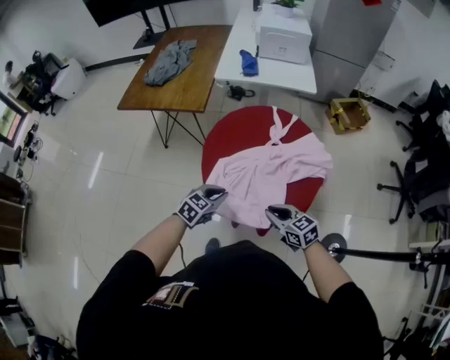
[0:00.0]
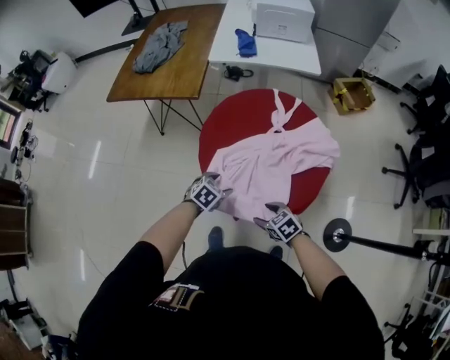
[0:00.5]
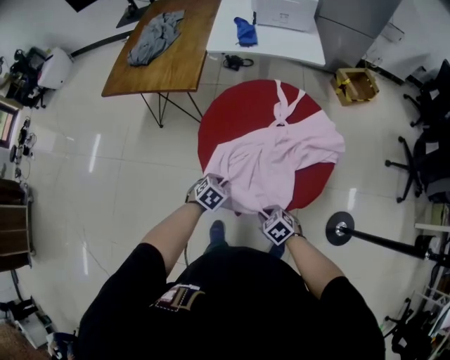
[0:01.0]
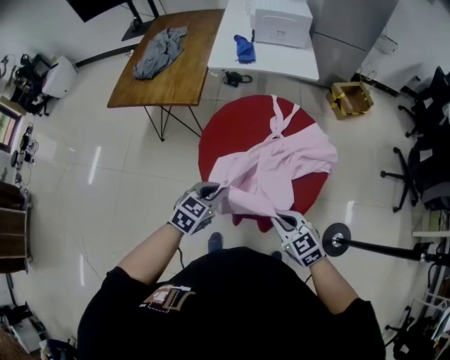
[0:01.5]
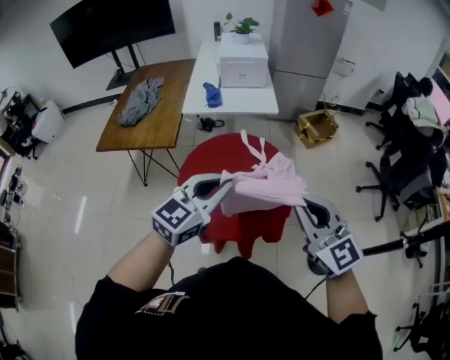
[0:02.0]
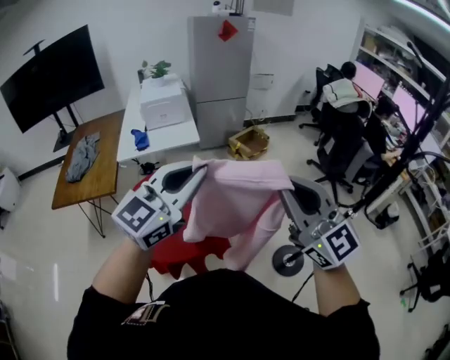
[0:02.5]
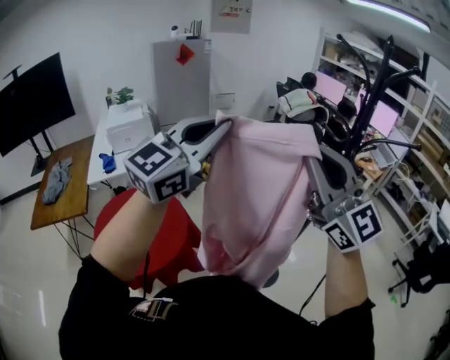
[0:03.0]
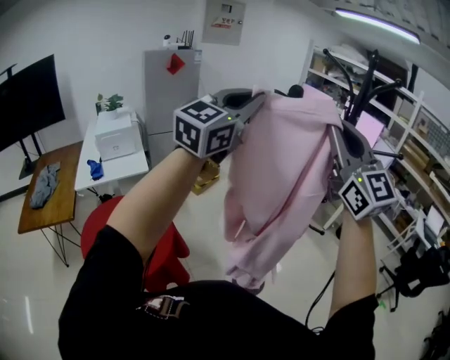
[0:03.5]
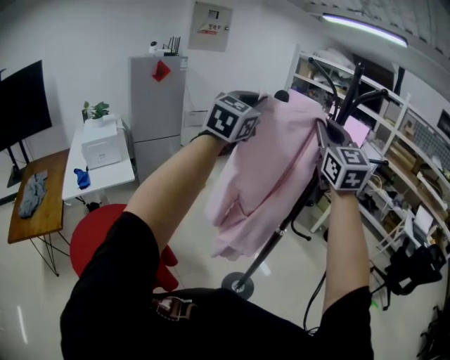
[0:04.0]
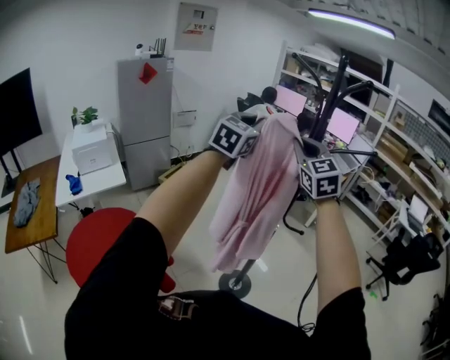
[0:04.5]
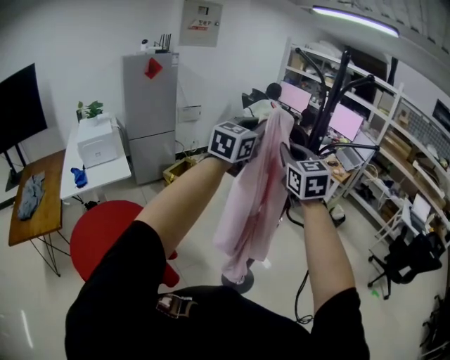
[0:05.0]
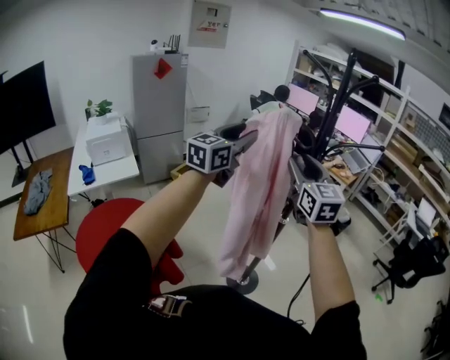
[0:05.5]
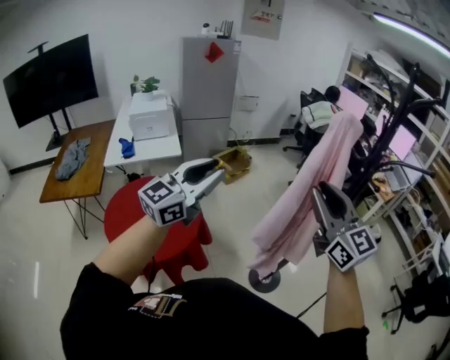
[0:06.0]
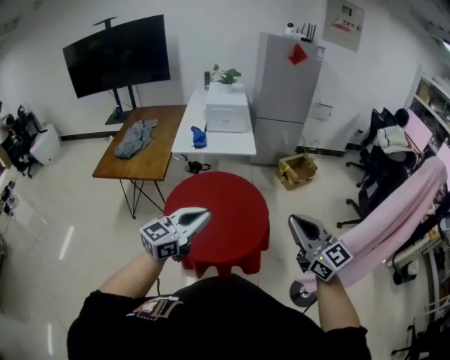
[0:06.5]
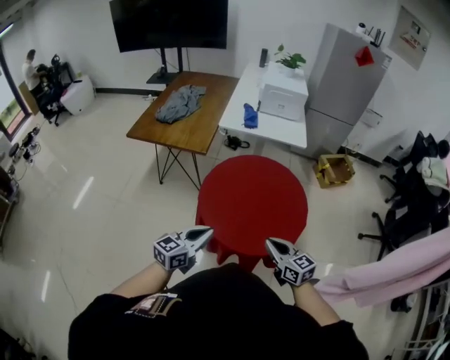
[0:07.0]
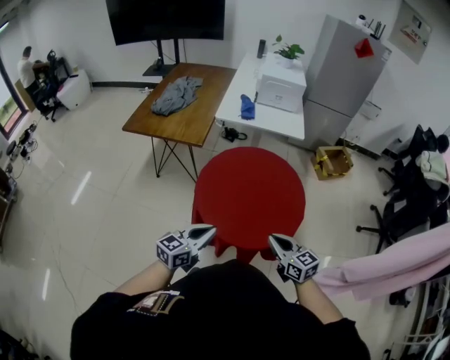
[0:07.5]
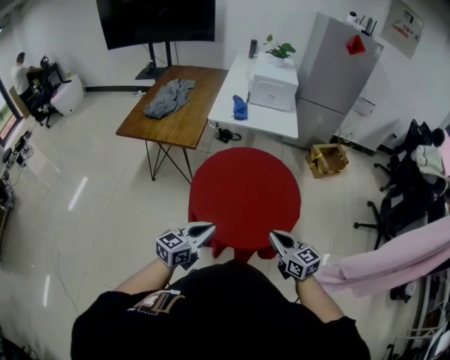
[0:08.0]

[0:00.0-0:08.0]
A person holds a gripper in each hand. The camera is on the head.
0:00.0 to 0:02.0: Both grippers travel together upward, some 30 cm. The left gripper rotates some 30 degrees, and opens, then closes again; the right gripper angles its fingers upward, by roughly 30 degrees, and opens and closes again.
0:02.0 to 0:04.0: Both grippers are carried approximately 60 cm. The right gripper changes its angle by approximately 60 degrees. Meanwhile the left gripper changes its angle by roughly 40 degrees.
0:04.0 to 0:06.0: The left gripper travels downward, backward and to the left by about 35 cm, and opens up, while the right gripper travels downward and backward by roughly 25 cm, and changes its angle by approximately 40 degrees.
0:06.0 to 0:08.0: The two grippers travel together, about 40 cm. The left gripper changes its angle by about 50 degrees, and closes its fingers. Meanwhile the right gripper turns by about 50 degrees, and closes.

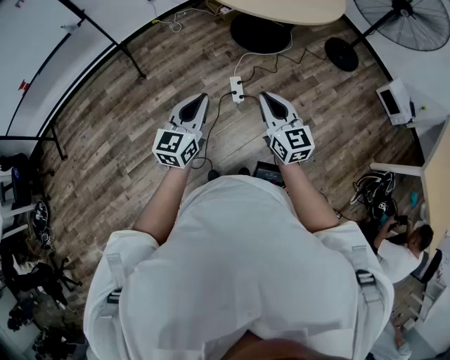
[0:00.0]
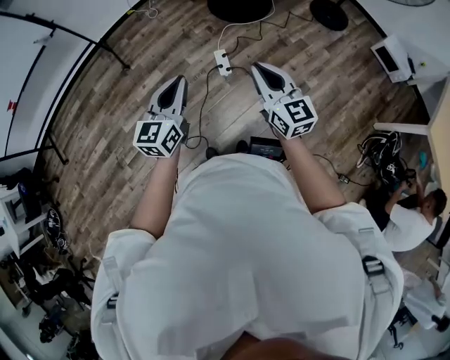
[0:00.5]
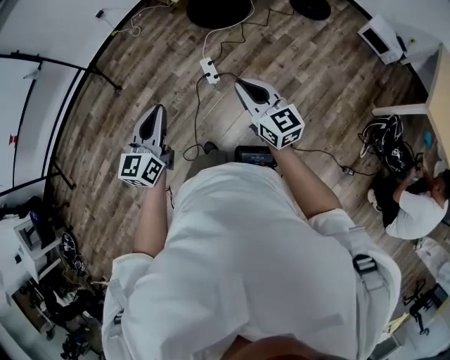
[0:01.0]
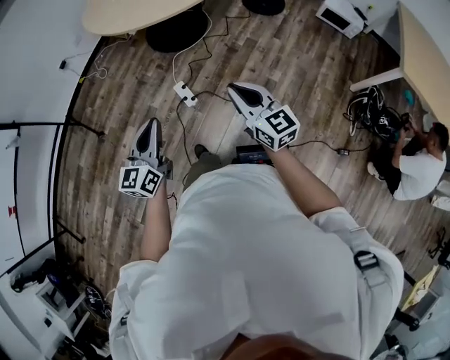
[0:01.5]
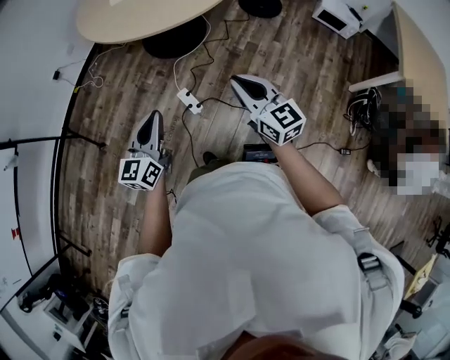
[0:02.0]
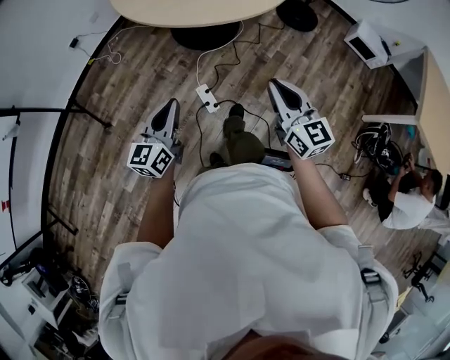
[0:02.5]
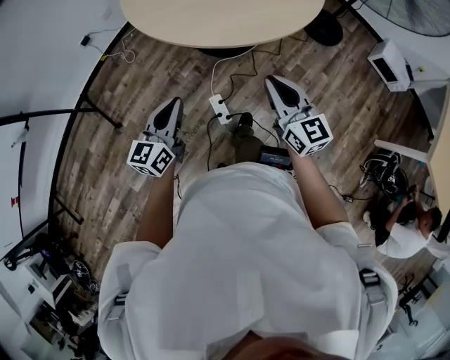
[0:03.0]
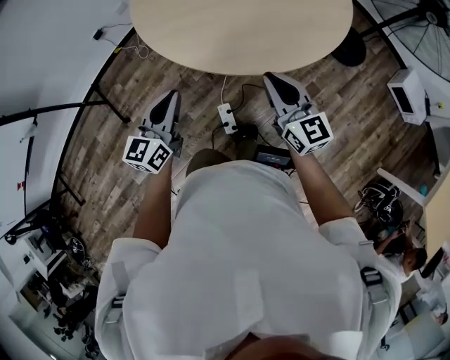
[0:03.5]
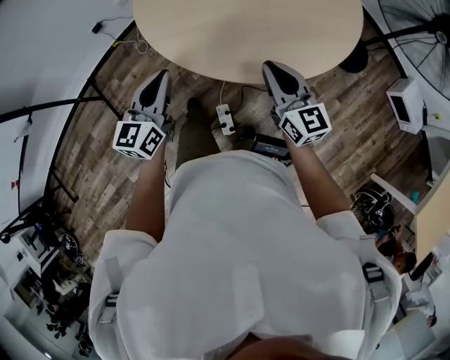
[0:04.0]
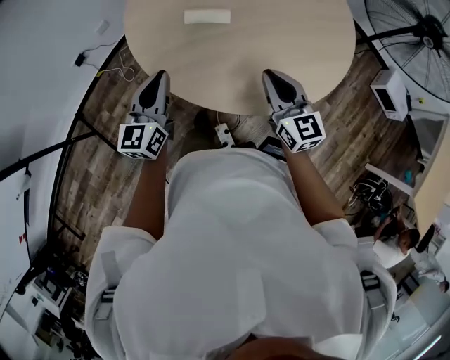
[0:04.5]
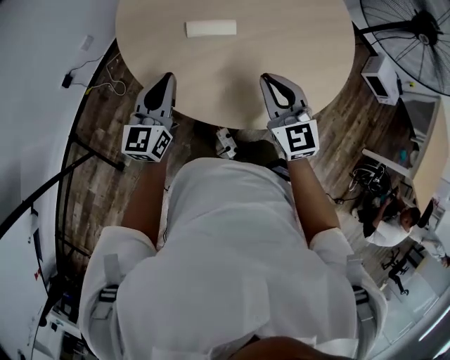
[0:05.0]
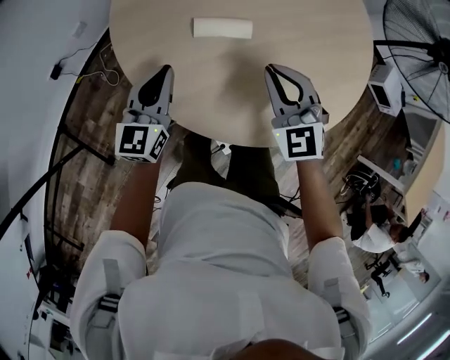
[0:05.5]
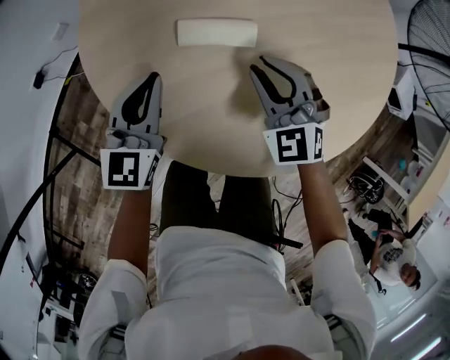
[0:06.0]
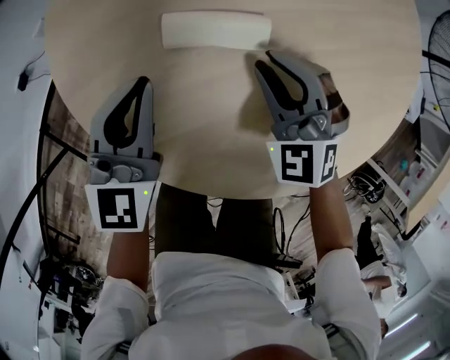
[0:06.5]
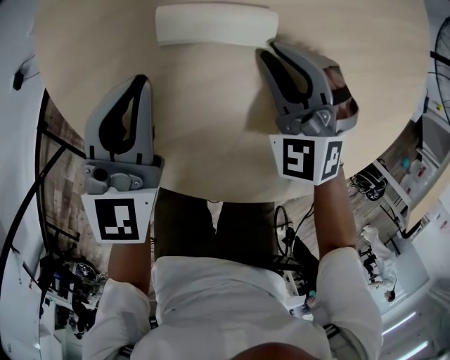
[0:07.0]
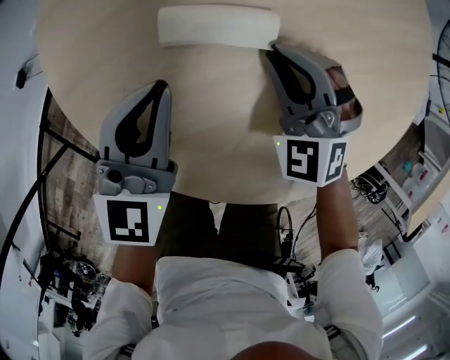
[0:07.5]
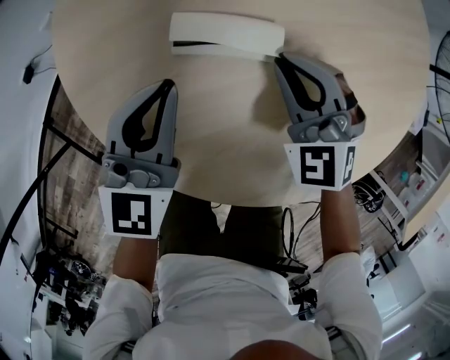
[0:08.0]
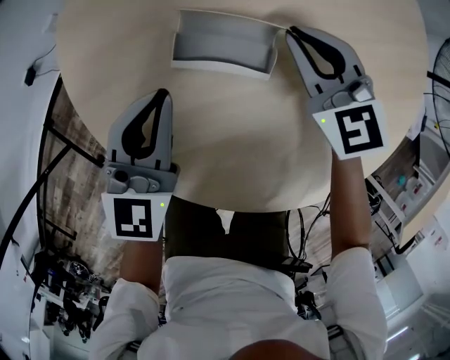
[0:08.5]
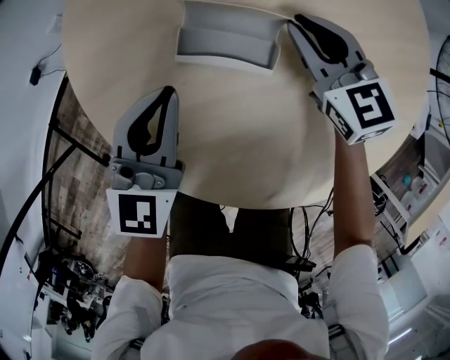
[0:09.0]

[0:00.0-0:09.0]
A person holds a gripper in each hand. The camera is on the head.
0:00.0 to 0:02.0: The right gripper is displaced forward and to the right by about 20 cm. The left gripper travels forward by some 20 cm.
0:02.0 to 0:04.5: Both grippers are carried forward, about 60 cm.
0:04.5 to 0:07.0: Both grippers move forward and downward, approximately 30 cm. The right gripper rolls counterclockwise, seen from behind, by about 50 degrees.
0:07.0 to 0:09.0: The right gripper is displaced forward by about 10 cm, and changes its angle by some 40 degrees.

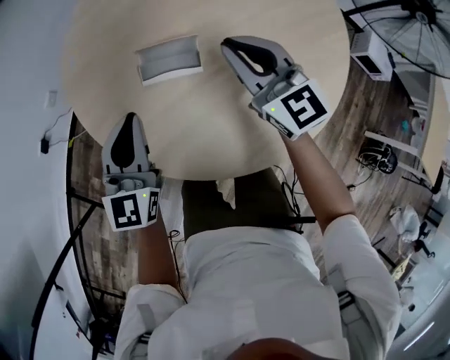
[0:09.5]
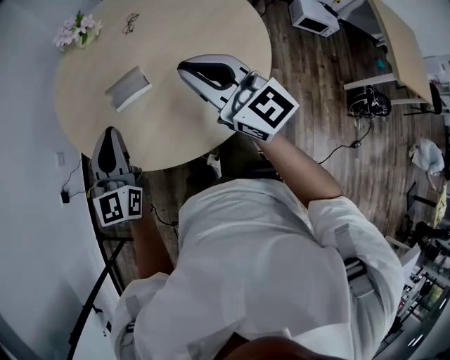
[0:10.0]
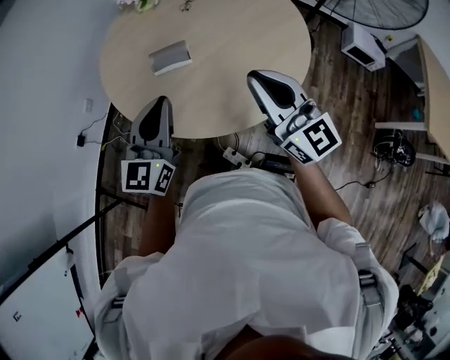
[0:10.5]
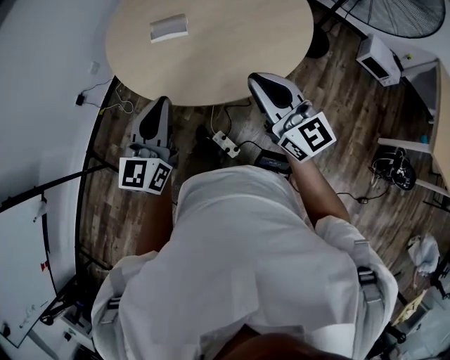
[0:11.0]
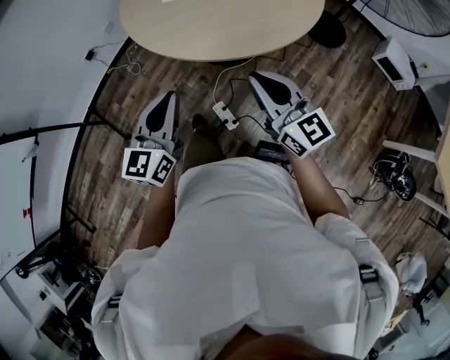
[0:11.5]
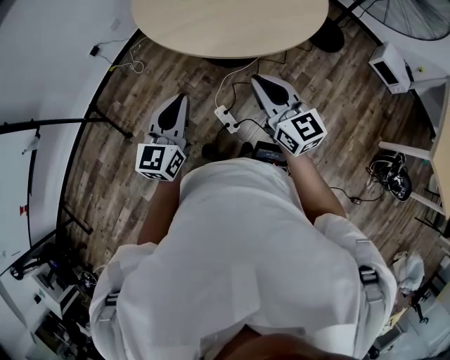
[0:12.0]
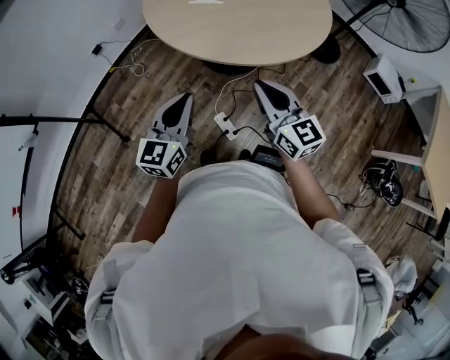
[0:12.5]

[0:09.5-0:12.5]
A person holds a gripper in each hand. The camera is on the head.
0:09.5 to 0:11.0: The grippers both shift backward, upward and to the right by about 40 cm.
0:11.0 to 0:12.5: The two grippers go some 20 cm backward and to the left.

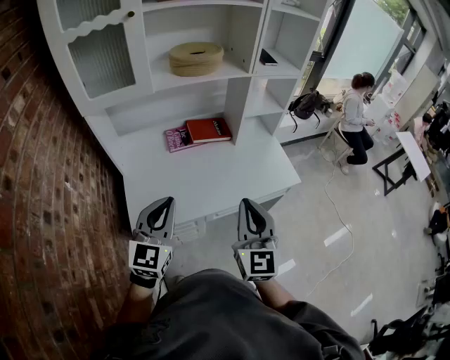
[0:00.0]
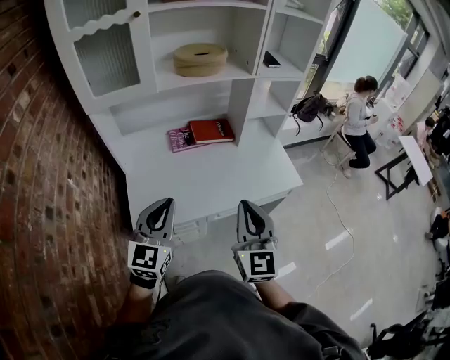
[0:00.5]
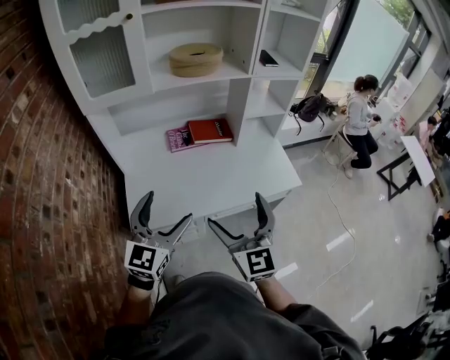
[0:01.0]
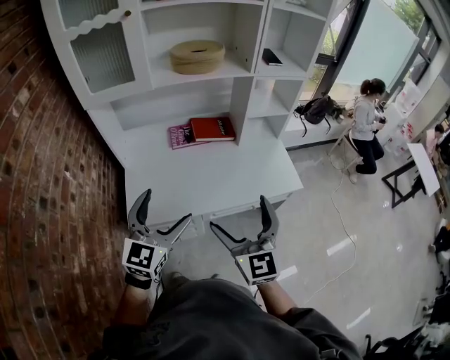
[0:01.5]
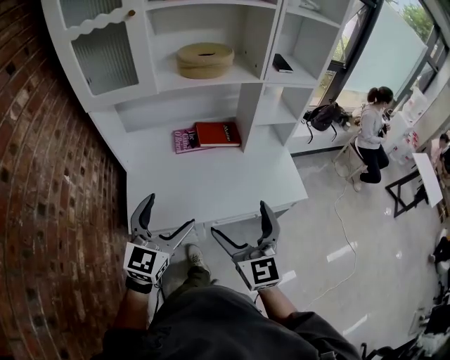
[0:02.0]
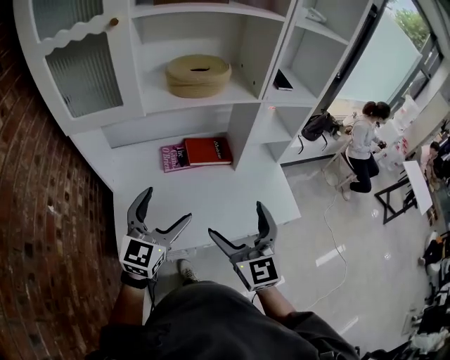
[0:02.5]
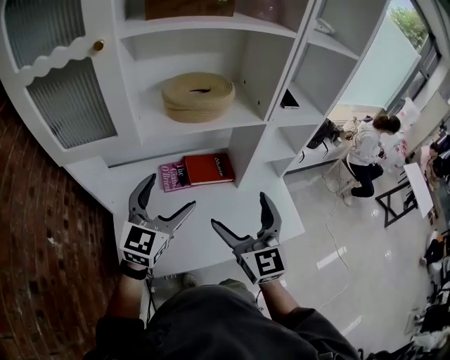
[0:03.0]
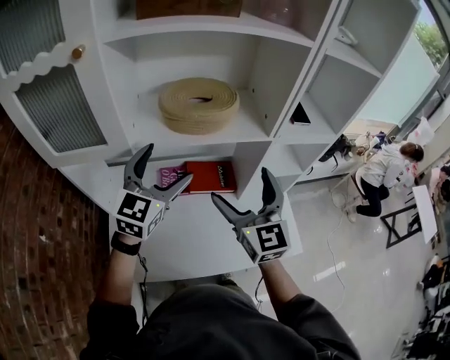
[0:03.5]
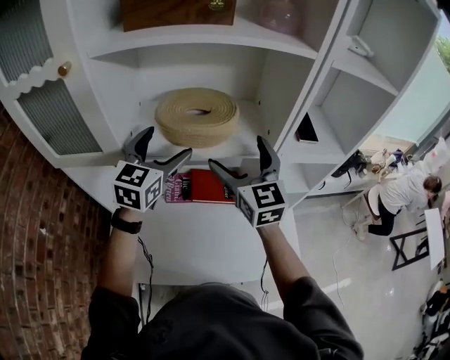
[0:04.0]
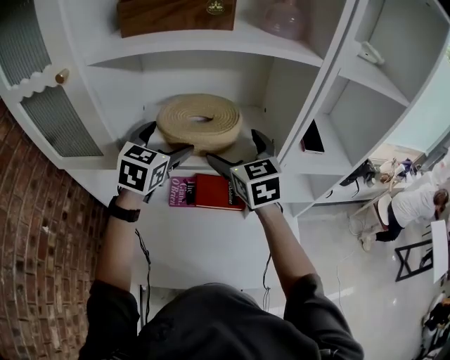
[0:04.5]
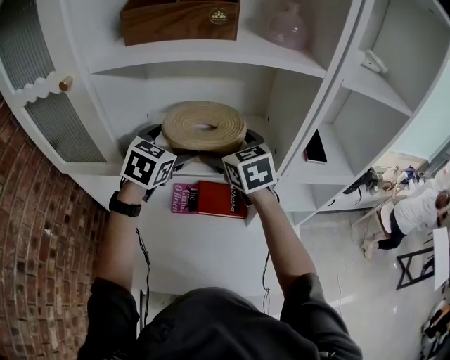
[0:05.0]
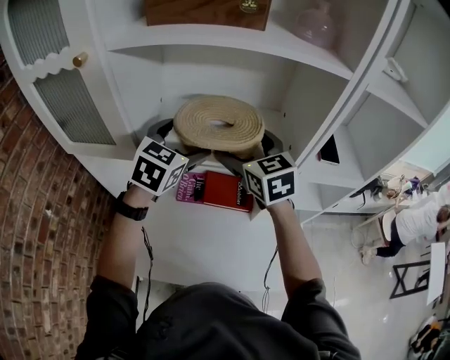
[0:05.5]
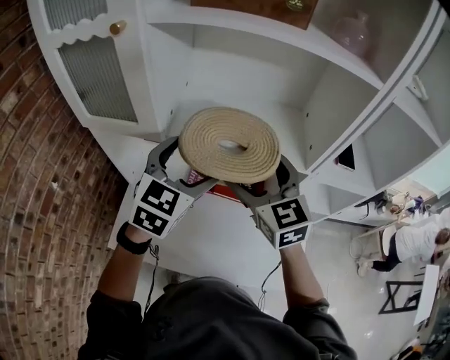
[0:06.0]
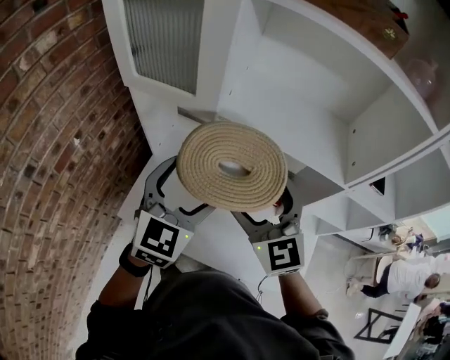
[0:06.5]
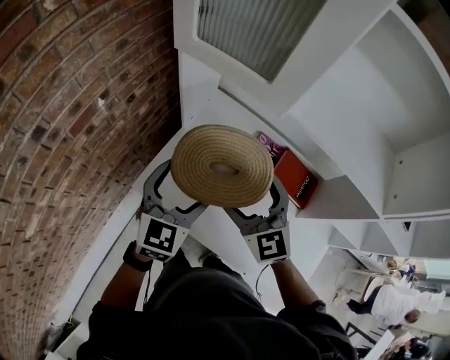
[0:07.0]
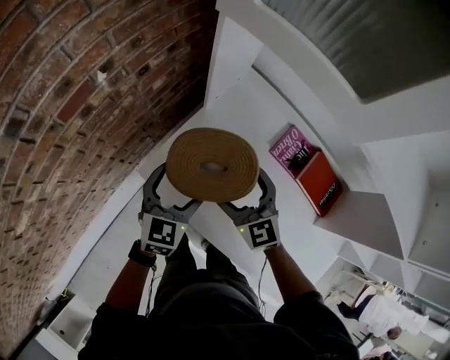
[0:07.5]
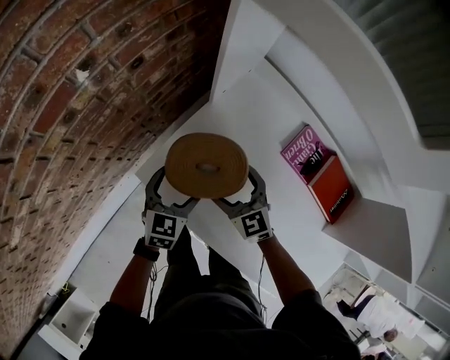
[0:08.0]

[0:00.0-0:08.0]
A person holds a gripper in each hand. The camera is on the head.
0:00.0 to 0:02.0: The left gripper opens. Meanwhile the right gripper opens its fingers.
0:02.0 to 0:04.0: The two grippers travel together, forward, approximately 50 cm.
0:04.0 to 0:06.0: The right gripper travels to the left by some 5 cm, travels forward and back again, about 10 cm each way, and swivels about 20 degrees, while the left gripper travels backward by some 5 cm.
0:06.0 to 0:08.0: Both grippers move downward, about 40 cm. The right gripper turns by some 40 degrees. Meanwhile the left gripper rotates approximately 50 degrees.
